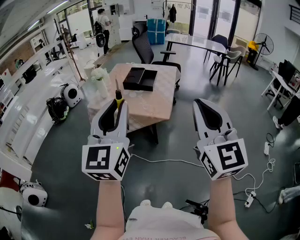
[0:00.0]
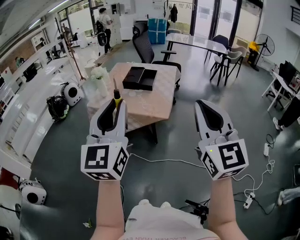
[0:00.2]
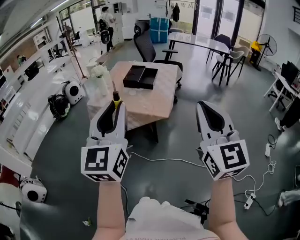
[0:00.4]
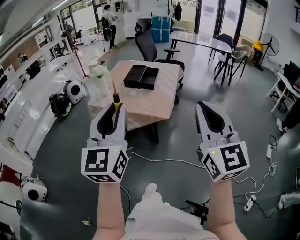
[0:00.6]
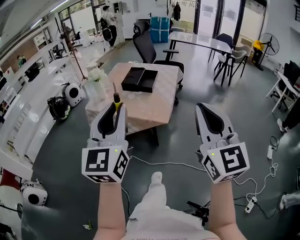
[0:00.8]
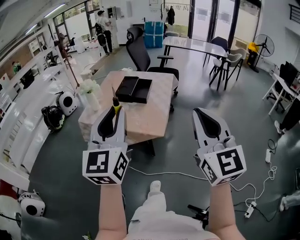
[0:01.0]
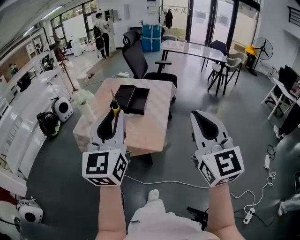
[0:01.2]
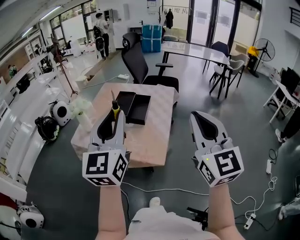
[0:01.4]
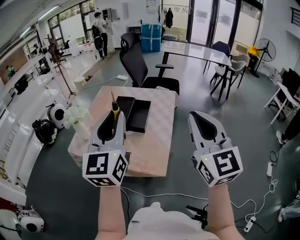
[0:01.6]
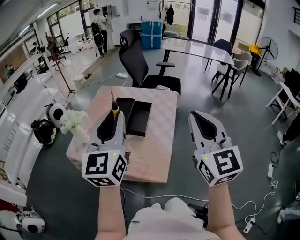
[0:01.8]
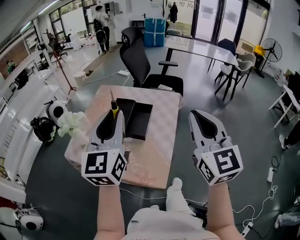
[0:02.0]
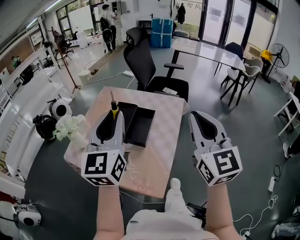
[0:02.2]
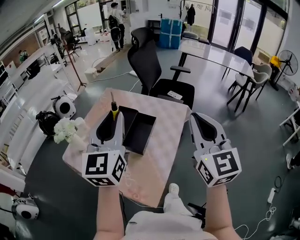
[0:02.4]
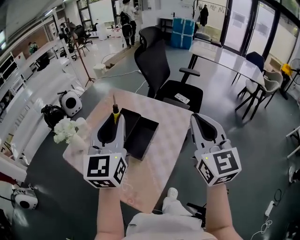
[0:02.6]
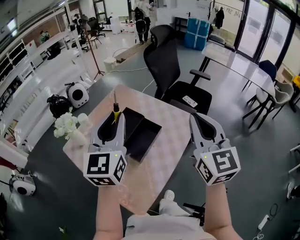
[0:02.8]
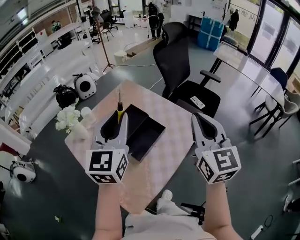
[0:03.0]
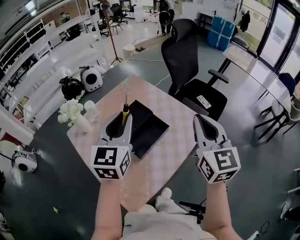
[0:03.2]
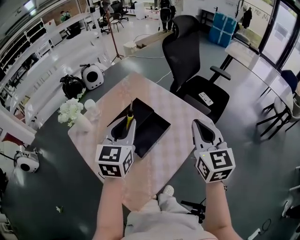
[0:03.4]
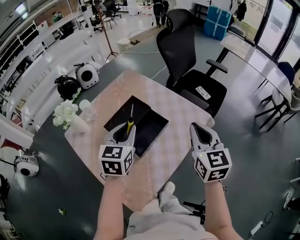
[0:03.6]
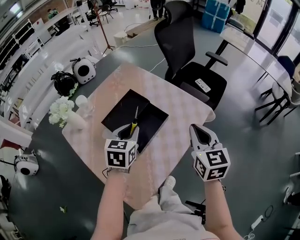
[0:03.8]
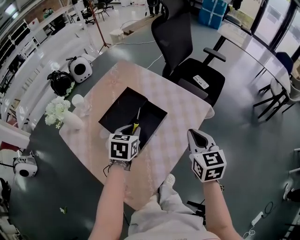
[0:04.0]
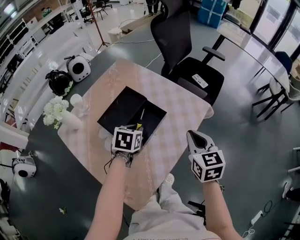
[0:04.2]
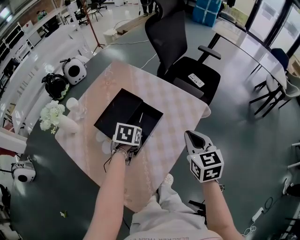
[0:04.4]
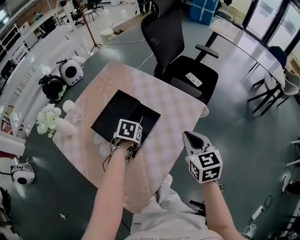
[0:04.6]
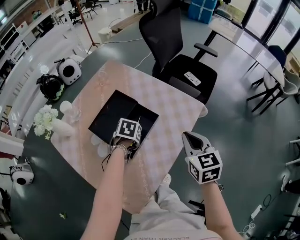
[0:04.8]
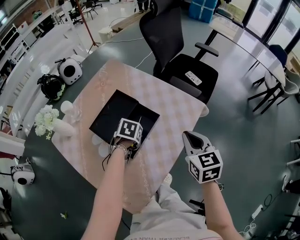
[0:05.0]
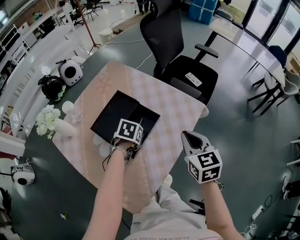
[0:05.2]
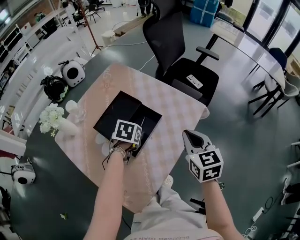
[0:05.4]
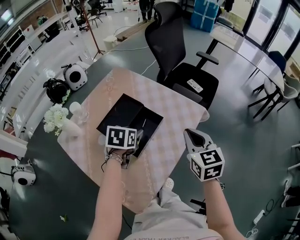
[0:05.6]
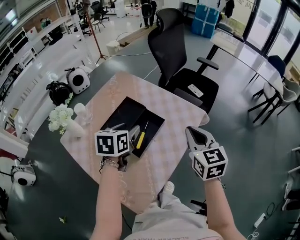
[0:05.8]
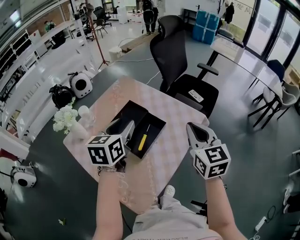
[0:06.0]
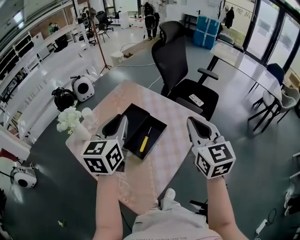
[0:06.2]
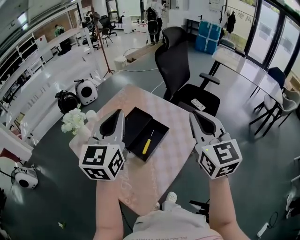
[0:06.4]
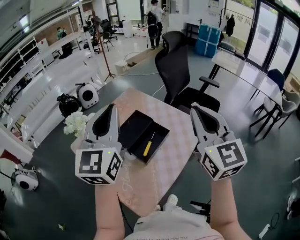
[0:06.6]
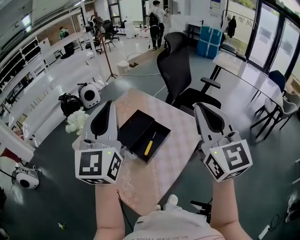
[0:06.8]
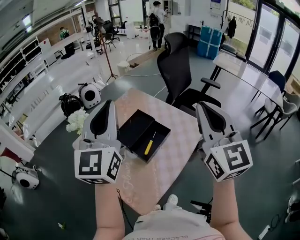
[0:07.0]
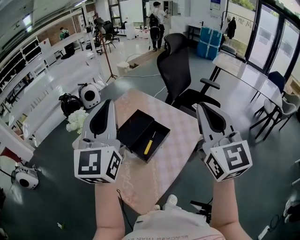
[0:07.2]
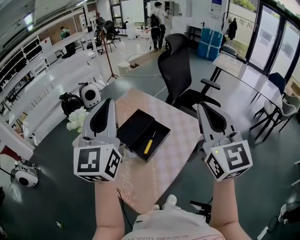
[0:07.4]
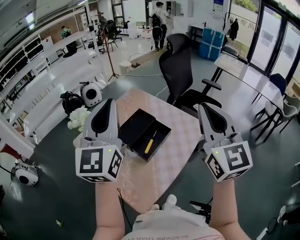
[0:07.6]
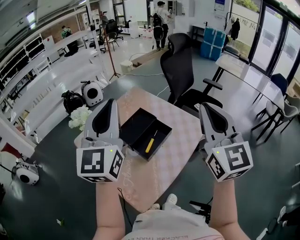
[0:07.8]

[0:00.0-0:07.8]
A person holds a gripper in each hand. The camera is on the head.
0:00.0 to 0:01.6: Both grippers move forward, approximately 35 cm.
0:01.6 to 0:03.2: The right gripper moves approximately 40 cm, and swivels some 30 degrees. Meanwhile the left gripper moves roughly 30 cm, and swivels roughly 30 degrees.
0:03.2 to 0:04.6: The right gripper travels downward by some 20 cm, and changes its angle by some 30 degrees. The left gripper goes roughly 35 cm downward, and points its fingers about 60 degrees further downward.
0:04.6 to 0:06.2: The right gripper travels upward by about 15 cm, and rotates some 20 degrees, while the left gripper is displaced upward by approximately 30 cm, tips its fingers upward by about 60 degrees, and opens, then closes again.
0:06.2 to 0:07.8: Both grippers travel together upward and backward, approximately 15 cm. The left gripper turns by about 30 degrees.

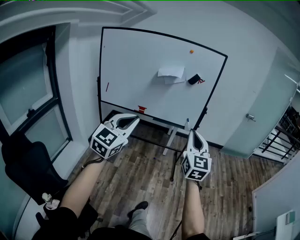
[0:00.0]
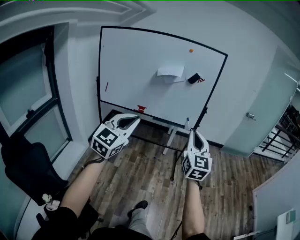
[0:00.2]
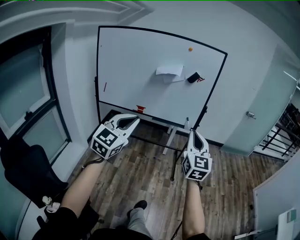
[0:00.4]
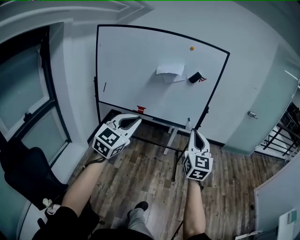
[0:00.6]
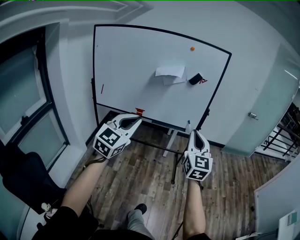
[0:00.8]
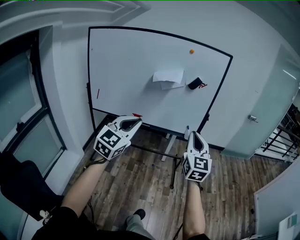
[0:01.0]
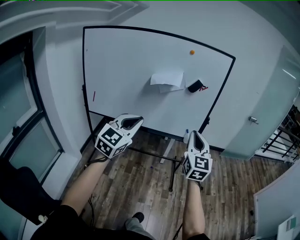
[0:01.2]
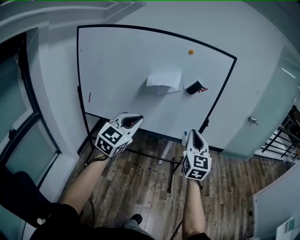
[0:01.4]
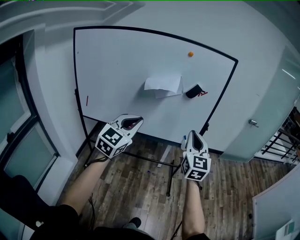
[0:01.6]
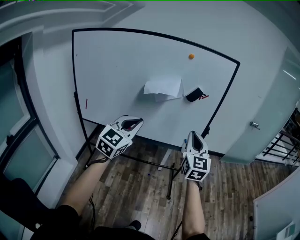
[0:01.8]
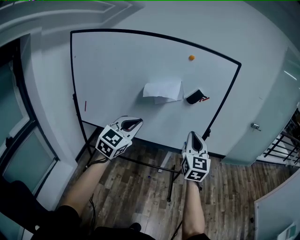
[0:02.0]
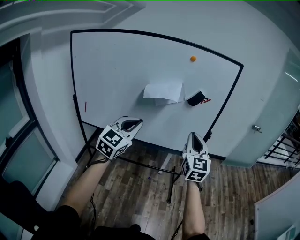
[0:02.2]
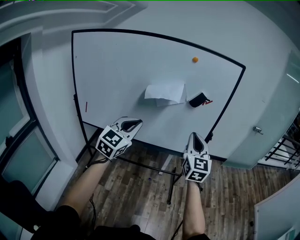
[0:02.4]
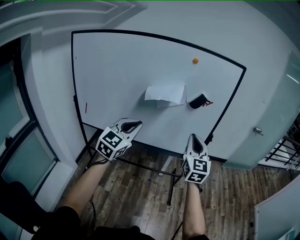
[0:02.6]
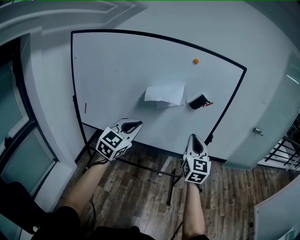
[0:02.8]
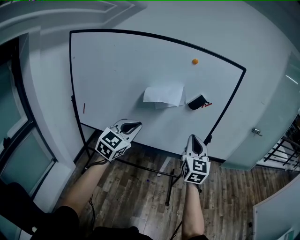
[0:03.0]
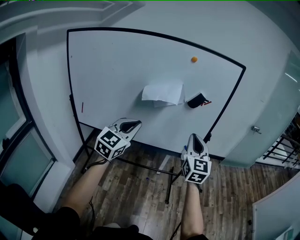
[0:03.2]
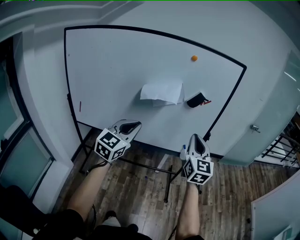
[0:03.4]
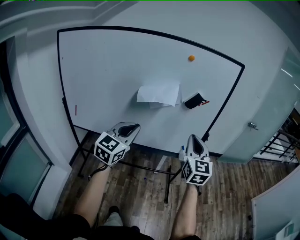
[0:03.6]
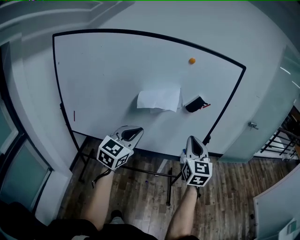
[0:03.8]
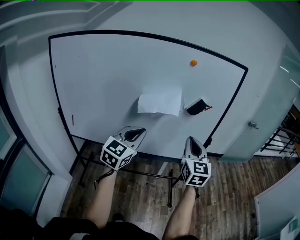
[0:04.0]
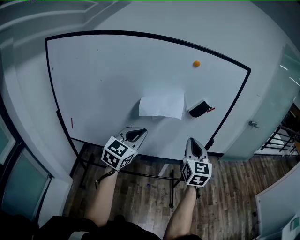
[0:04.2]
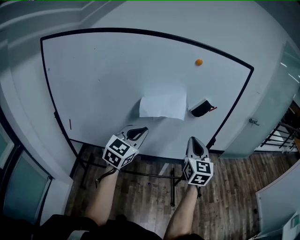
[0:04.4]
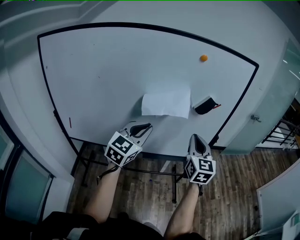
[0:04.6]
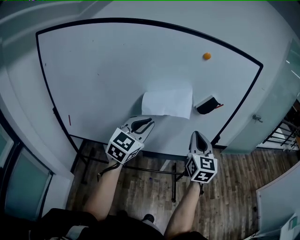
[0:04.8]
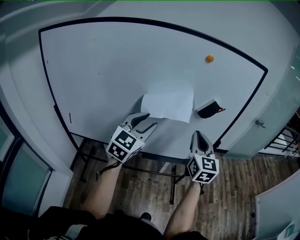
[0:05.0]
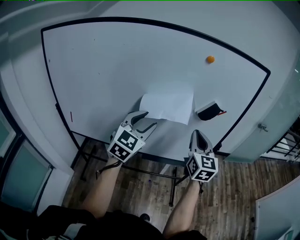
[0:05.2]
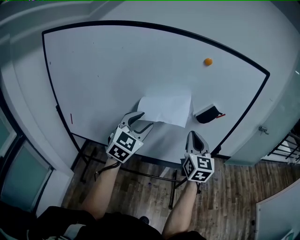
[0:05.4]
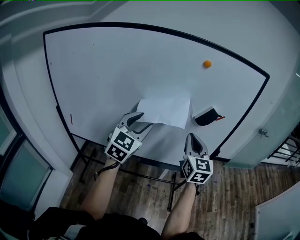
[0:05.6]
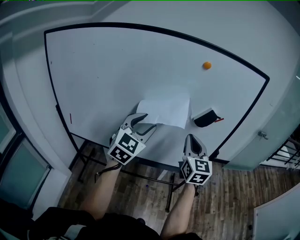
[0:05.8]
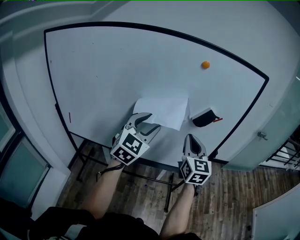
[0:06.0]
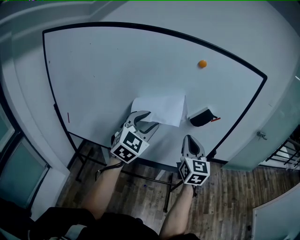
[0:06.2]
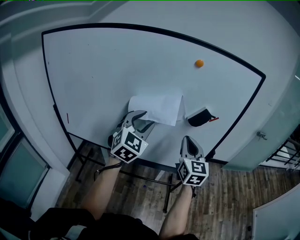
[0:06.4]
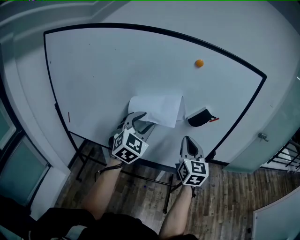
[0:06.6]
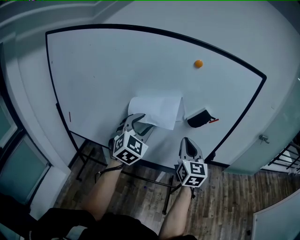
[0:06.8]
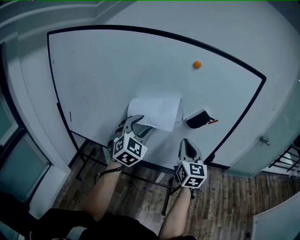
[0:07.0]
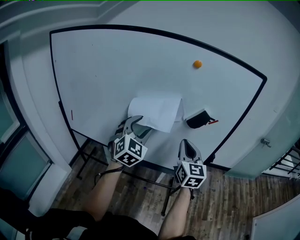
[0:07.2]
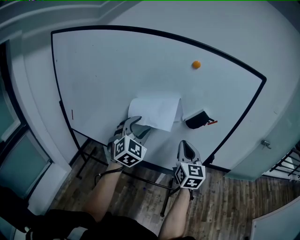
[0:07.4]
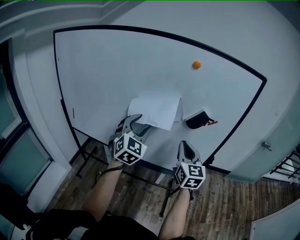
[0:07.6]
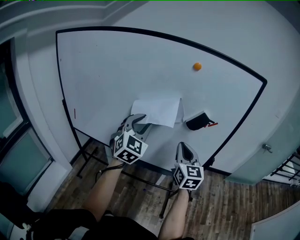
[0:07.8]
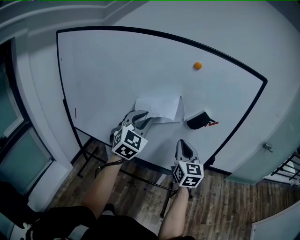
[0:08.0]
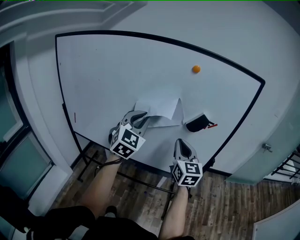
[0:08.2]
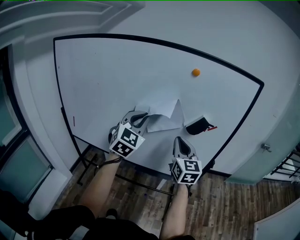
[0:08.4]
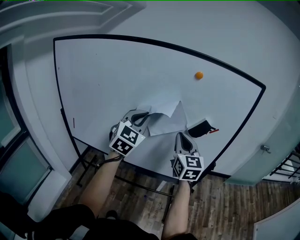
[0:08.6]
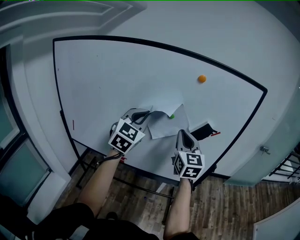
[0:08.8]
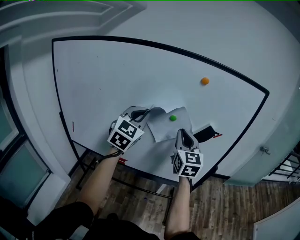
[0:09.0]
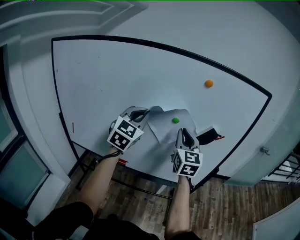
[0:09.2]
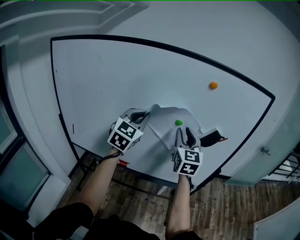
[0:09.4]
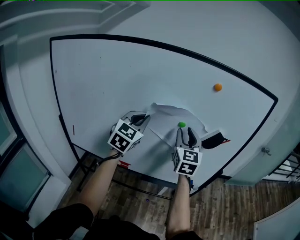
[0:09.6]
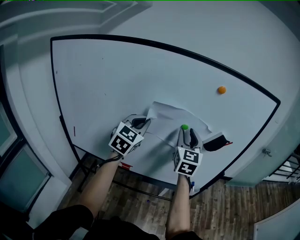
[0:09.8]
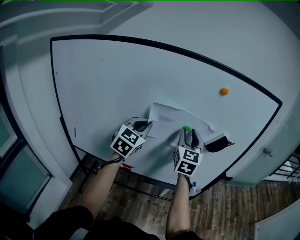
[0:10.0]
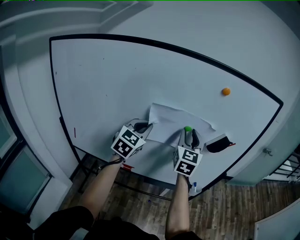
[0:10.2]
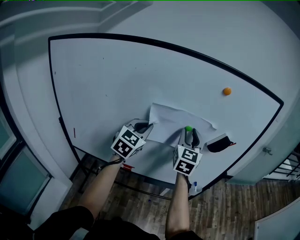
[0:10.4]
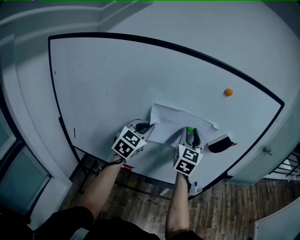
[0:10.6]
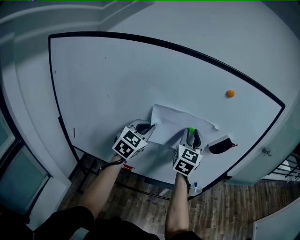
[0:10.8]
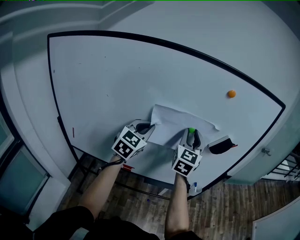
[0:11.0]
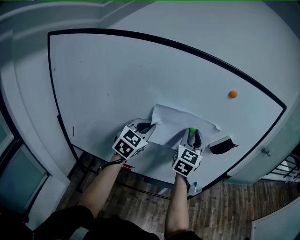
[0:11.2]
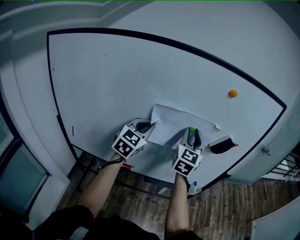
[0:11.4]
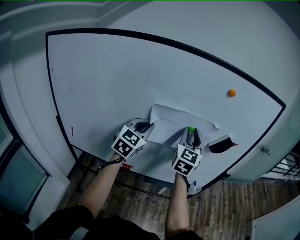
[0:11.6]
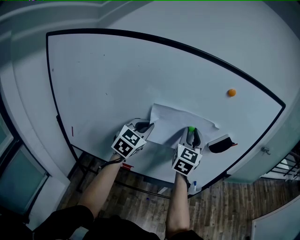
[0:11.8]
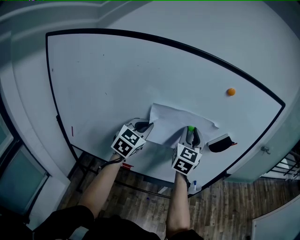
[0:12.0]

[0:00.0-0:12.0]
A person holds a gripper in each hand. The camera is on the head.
0:00.0 to 0:01.6: The grippers both shift forward by about 35 cm.
0:01.6 to 0:03.0: Both grippers move forward, some 10 cm.
0:03.0 to 0:04.4: The left gripper is displaced forward by some 15 cm; the right gripper goes roughly 10 cm forward and to the left.
0:04.4 to 0:06.0: Both grippers travel together forward, about 10 cm. The left gripper opens.
0:06.0 to 0:07.6: The left gripper turns by roughly 20 degrees.
0:07.6 to 0:09.0: The left gripper goes approximately 10 cm upward, to the left and forward, and closes its fingers; the right gripper goes about 15 cm to the left, upward and forward.
0:09.0 to 0:10.4: The right gripper travels forward by roughly 5 cm, and opens its fingers. The left gripper is displaced downward and to the left by some 10 cm.
0:10.4 to 0:12.0: There are only small adjustments of the grippers.

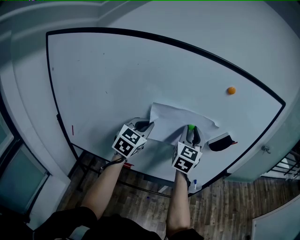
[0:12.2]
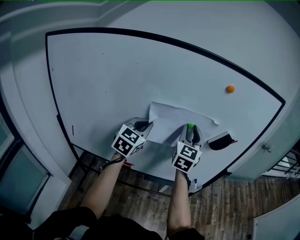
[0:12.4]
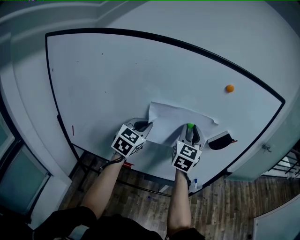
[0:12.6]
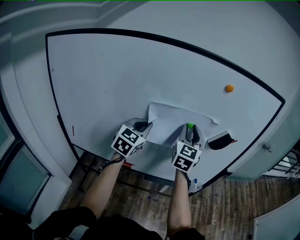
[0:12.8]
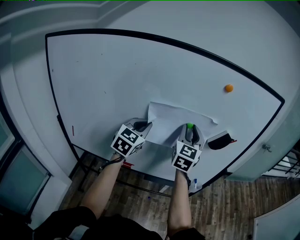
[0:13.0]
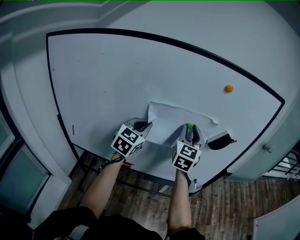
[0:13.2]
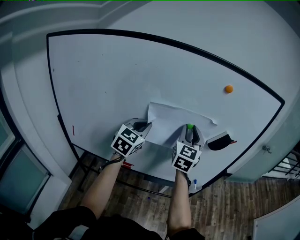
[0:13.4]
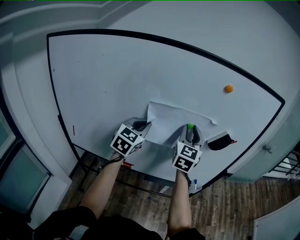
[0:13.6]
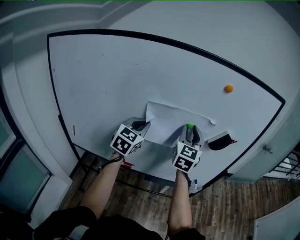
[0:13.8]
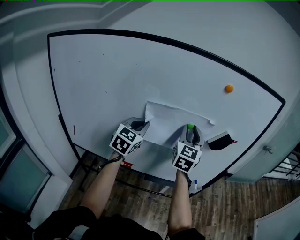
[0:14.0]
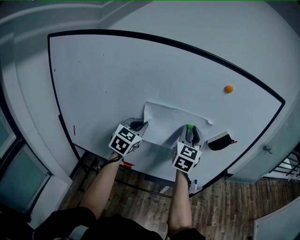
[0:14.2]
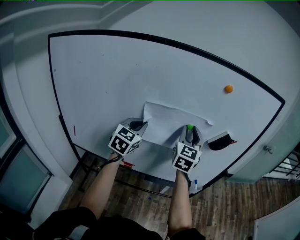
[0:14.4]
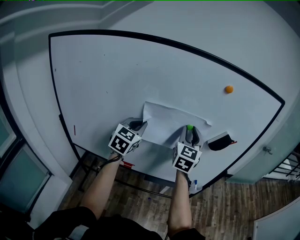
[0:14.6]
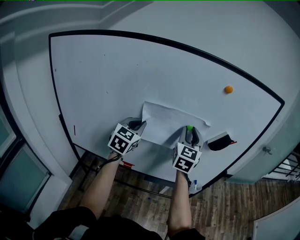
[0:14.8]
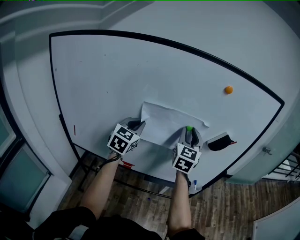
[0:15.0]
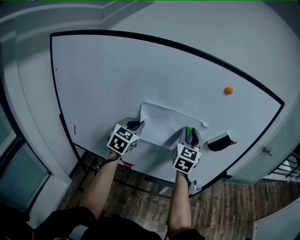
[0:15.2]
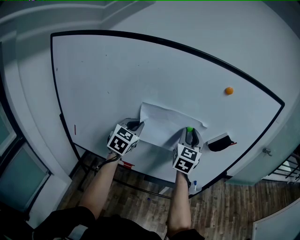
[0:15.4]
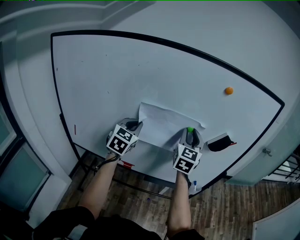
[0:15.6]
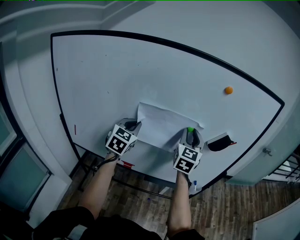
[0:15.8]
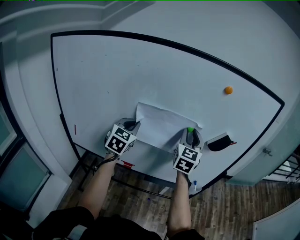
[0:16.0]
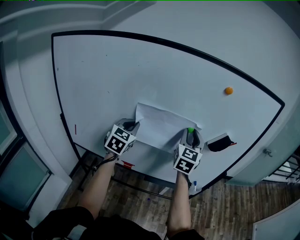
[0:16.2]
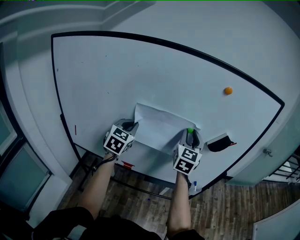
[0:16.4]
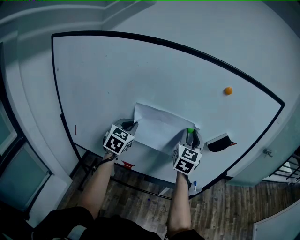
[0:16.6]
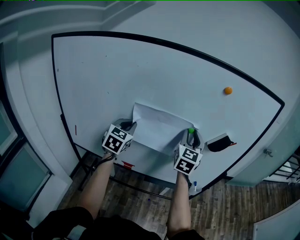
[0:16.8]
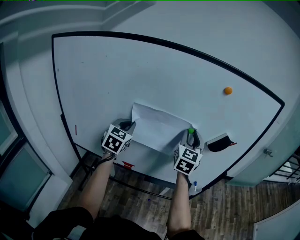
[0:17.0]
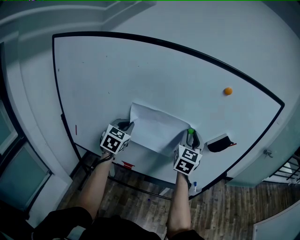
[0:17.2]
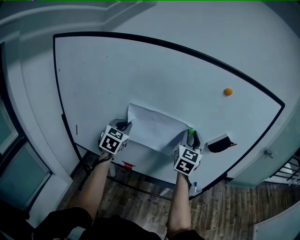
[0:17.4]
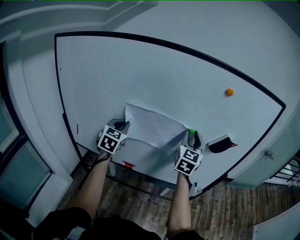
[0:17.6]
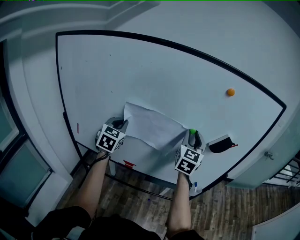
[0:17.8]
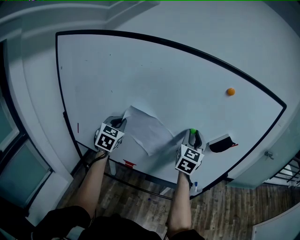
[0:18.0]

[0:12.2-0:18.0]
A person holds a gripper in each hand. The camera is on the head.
0:12.2 to 0:13.6: The two grippers keep their place.
0:13.6 to 0:15.0: The grippers stay close to where they were, moving slightly.
0:15.0 to 0:16.6: The grippers move only a little.
0:16.6 to 0:18.0: The left gripper goes approximately 5 cm to the left.
